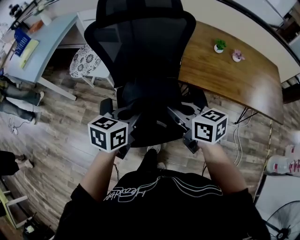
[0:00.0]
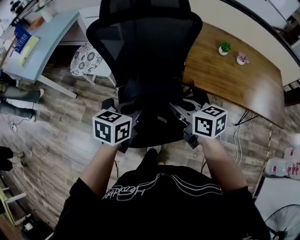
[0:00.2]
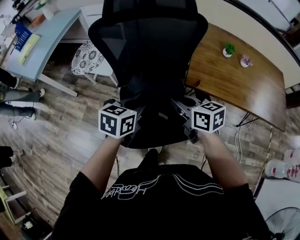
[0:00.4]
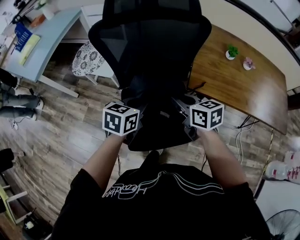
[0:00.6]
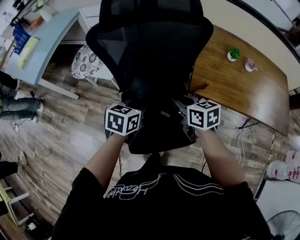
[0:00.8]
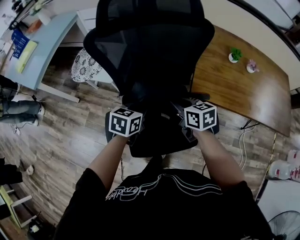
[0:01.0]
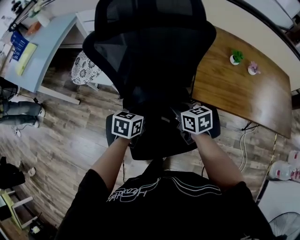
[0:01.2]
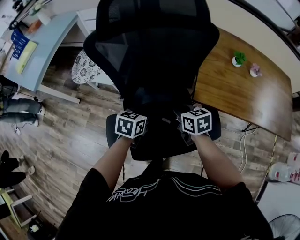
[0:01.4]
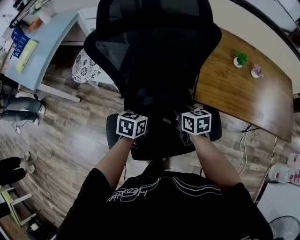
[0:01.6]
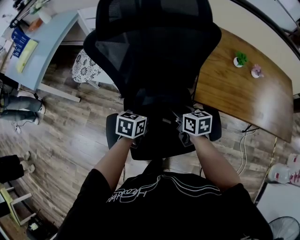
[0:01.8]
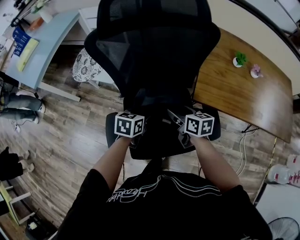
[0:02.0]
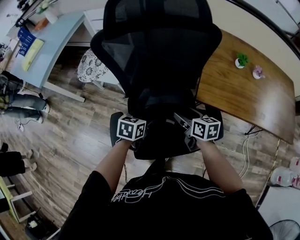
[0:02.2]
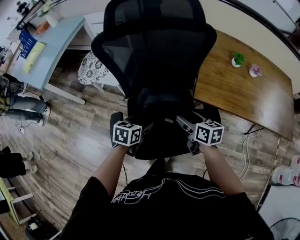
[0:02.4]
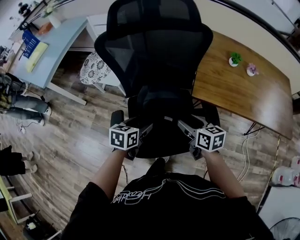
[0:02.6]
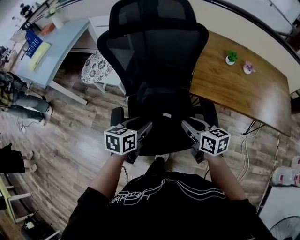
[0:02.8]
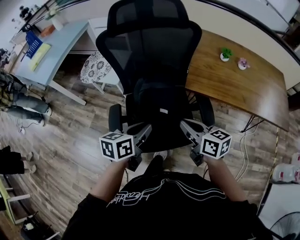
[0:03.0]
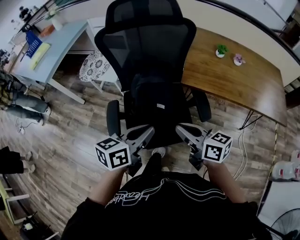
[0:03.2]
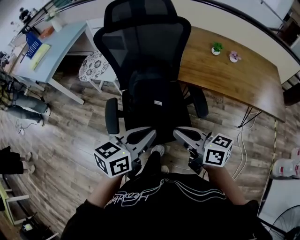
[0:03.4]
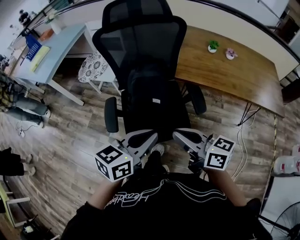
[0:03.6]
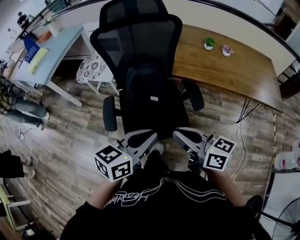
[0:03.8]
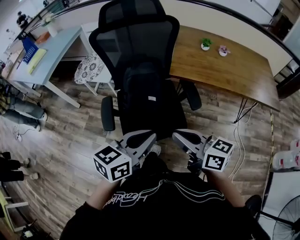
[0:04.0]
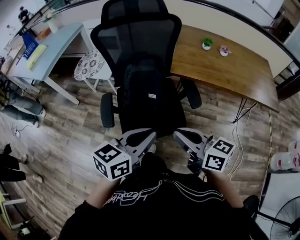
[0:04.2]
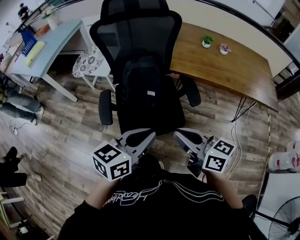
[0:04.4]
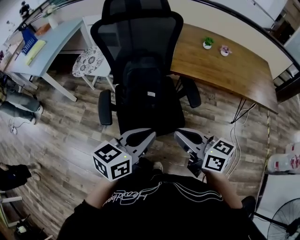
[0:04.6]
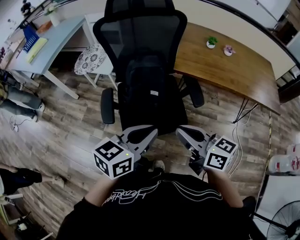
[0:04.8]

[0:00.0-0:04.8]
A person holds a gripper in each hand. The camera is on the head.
0:00.0 to 0:01.6: Both grippers travel together downward and forward, some 20 cm.
0:01.6 to 0:03.2: The two grippers go approximately 30 cm backward and upward. The right gripper turns by about 30 degrees, and opens, then closes again; the left gripper turns by about 30 degrees, and opens and closes again.
0:03.2 to 0:04.8: Both grippers move backward, some 10 cm.

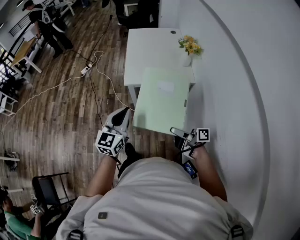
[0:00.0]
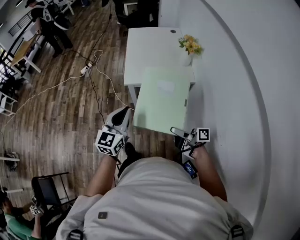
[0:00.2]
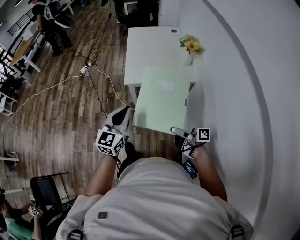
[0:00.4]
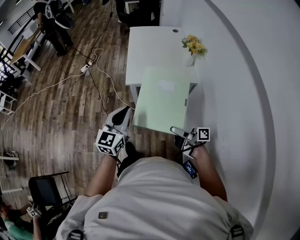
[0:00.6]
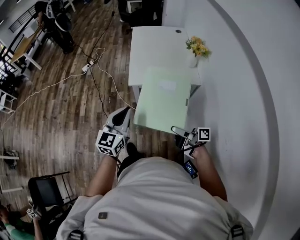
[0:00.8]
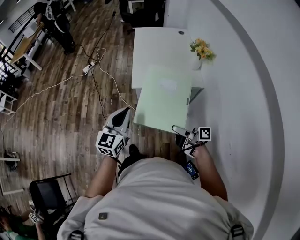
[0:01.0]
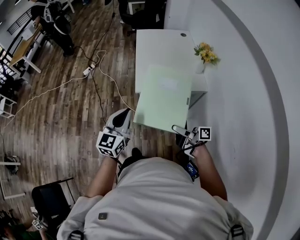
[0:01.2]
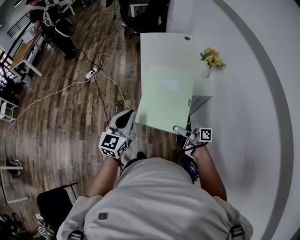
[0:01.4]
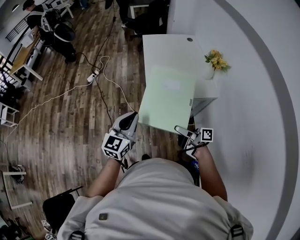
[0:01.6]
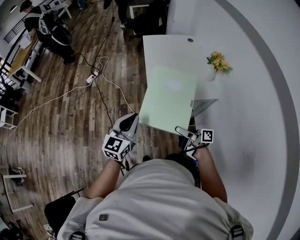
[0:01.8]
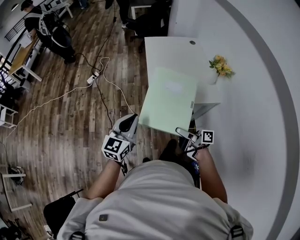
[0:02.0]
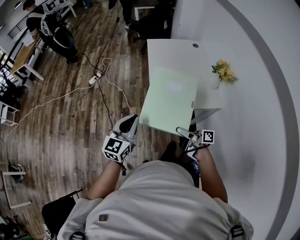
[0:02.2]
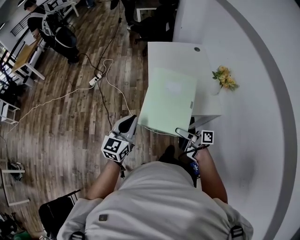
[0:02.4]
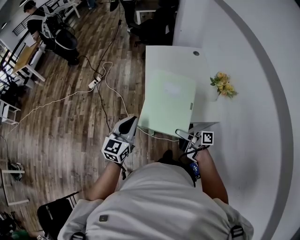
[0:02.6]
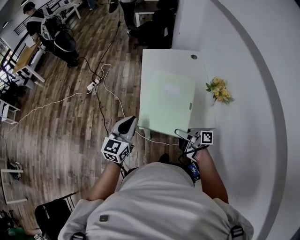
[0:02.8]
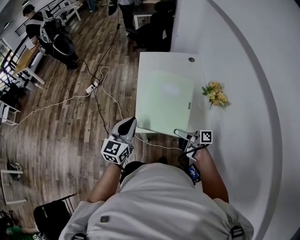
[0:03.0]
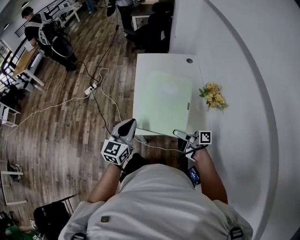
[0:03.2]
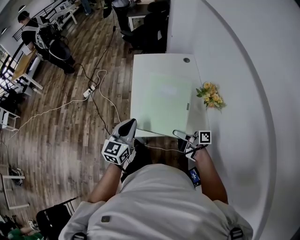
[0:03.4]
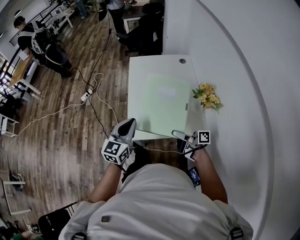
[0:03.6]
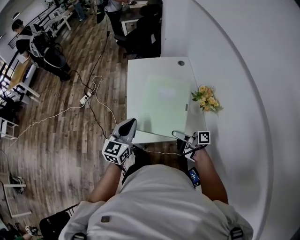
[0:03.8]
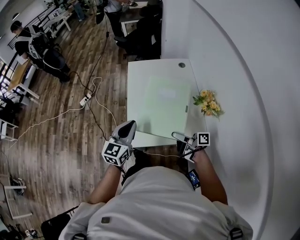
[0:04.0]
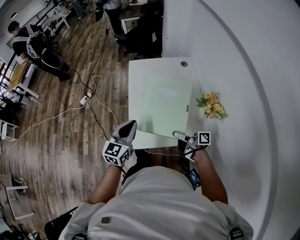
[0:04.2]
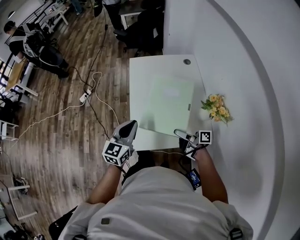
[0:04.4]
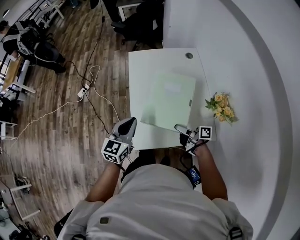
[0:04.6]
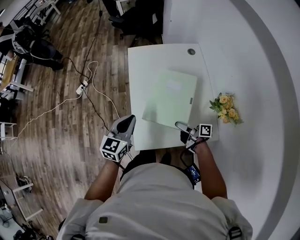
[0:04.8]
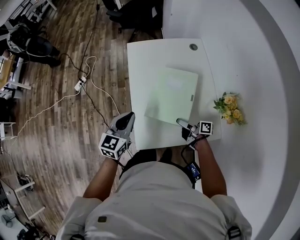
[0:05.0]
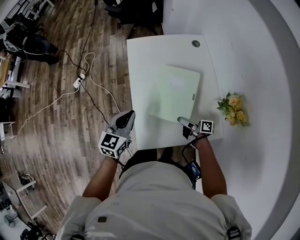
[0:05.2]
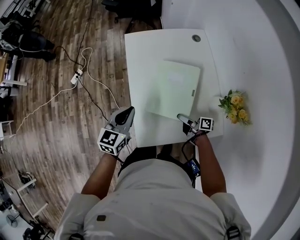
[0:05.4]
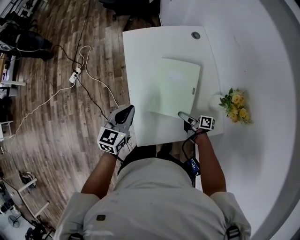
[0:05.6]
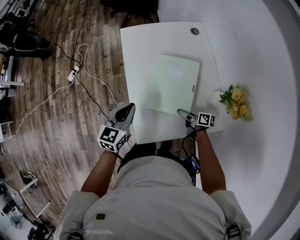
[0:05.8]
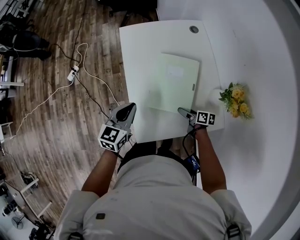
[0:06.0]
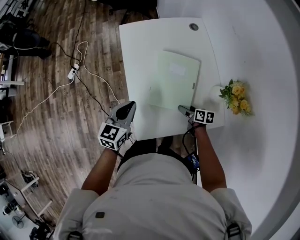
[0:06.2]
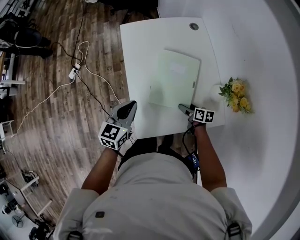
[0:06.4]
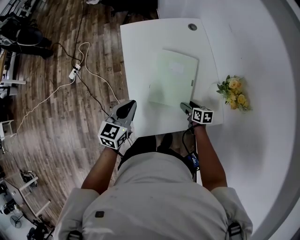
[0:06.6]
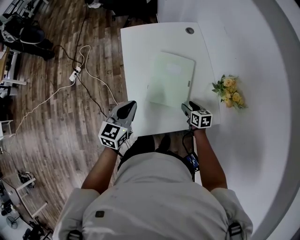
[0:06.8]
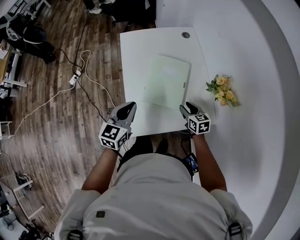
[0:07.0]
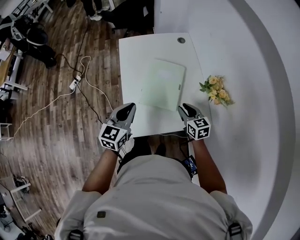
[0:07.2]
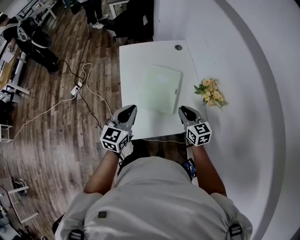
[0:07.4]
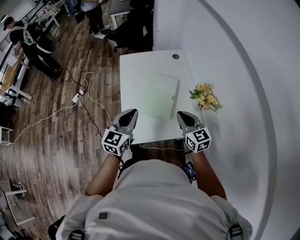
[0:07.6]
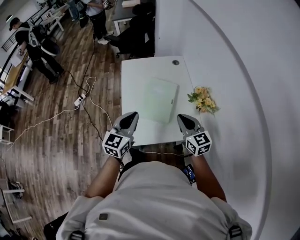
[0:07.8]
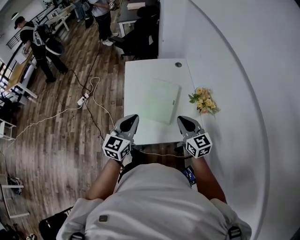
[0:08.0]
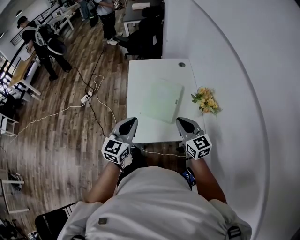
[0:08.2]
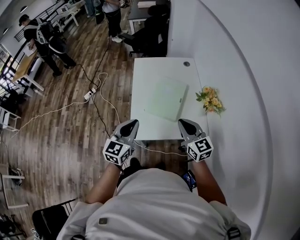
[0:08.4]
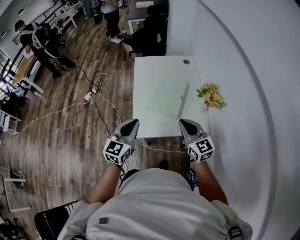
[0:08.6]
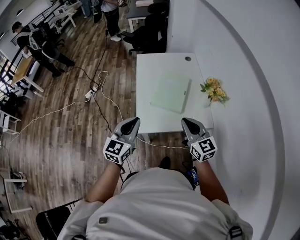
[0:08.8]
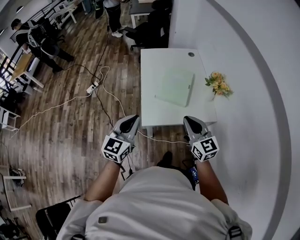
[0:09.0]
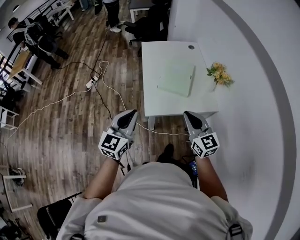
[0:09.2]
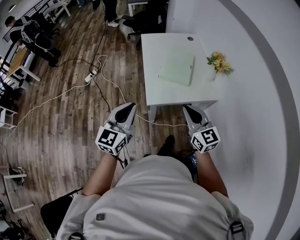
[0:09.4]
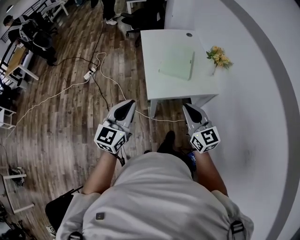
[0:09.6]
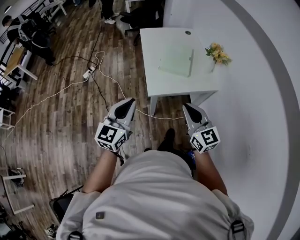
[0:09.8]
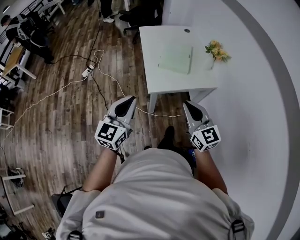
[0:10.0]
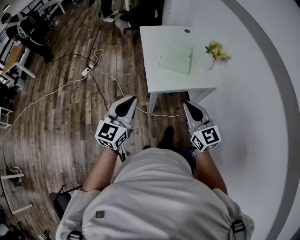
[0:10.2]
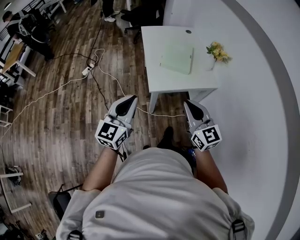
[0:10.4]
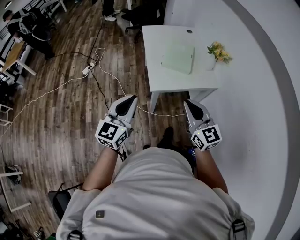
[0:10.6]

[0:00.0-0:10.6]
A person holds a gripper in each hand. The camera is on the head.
0:00.0 to 0:01.6: Both grippers travel together forward and to the left, about 20 cm.
0:01.6 to 0:03.0: The two grippers go approximately 25 cm forward and to the right.
0:03.0 to 0:04.6: The right gripper is displaced forward, downward and to the right by roughly 20 cm, while the left gripper travels forward by about 15 cm.
0:04.6 to 0:06.0: The left gripper heads downward and forward, covering approximately 10 cm, while the right gripper moves downward, roughly 15 cm, and tilts its fingers about 30 degrees downward.
0:06.0 to 0:07.6: The left gripper goes roughly 20 cm upward, backward and to the right. Meanwhile the right gripper shifts approximately 30 cm upward, twists approximately 60 degrees counterclockwise, seen from behind, and closes up.
0:07.6 to 0:09.0: The grippers both shift backward and to the left by roughly 20 cm.
0:09.0 to 0:10.6: Both grippers travel together backward and to the left, some 20 cm.

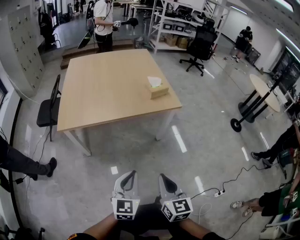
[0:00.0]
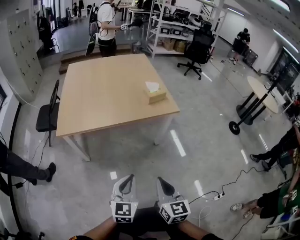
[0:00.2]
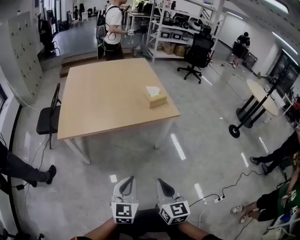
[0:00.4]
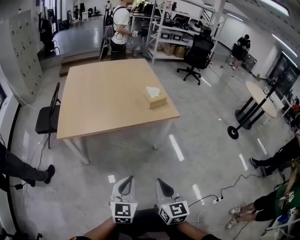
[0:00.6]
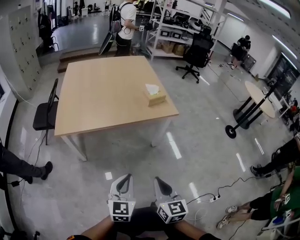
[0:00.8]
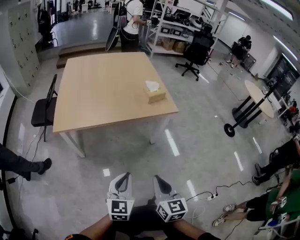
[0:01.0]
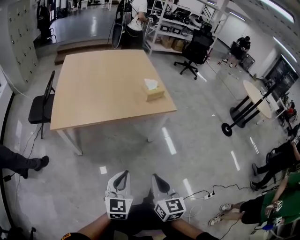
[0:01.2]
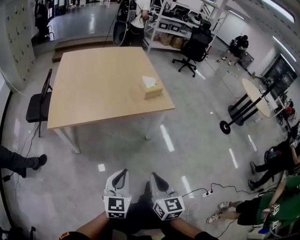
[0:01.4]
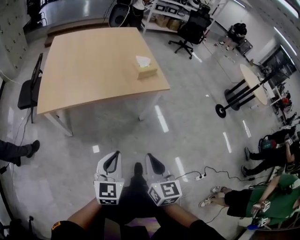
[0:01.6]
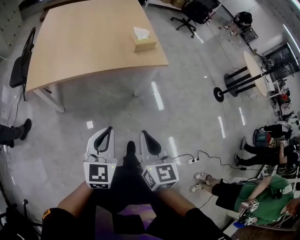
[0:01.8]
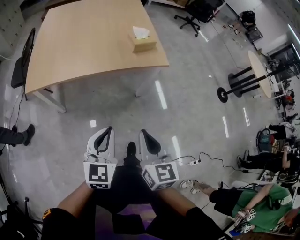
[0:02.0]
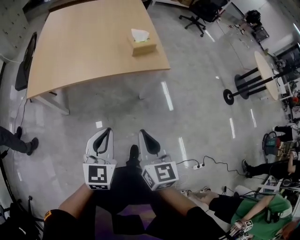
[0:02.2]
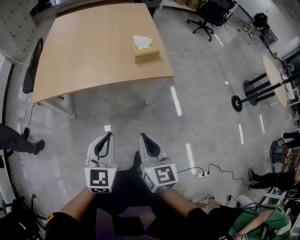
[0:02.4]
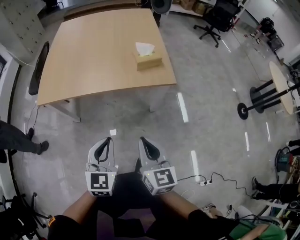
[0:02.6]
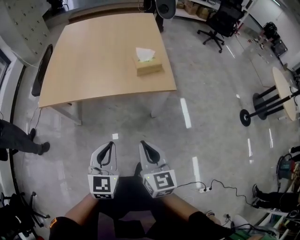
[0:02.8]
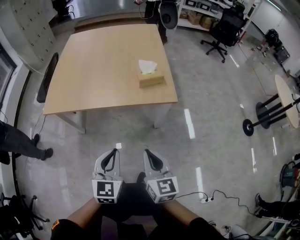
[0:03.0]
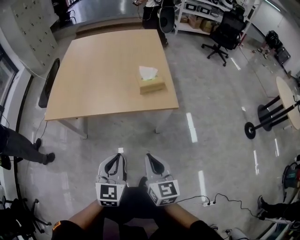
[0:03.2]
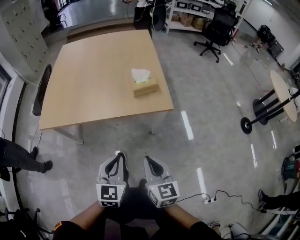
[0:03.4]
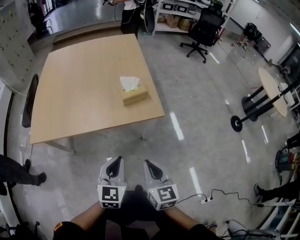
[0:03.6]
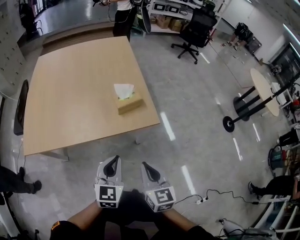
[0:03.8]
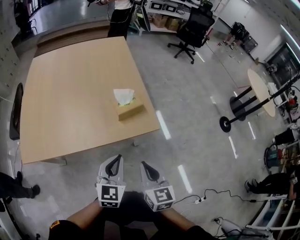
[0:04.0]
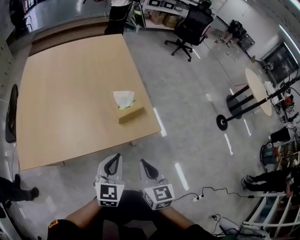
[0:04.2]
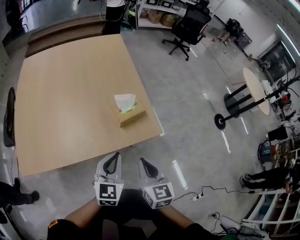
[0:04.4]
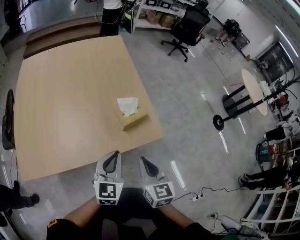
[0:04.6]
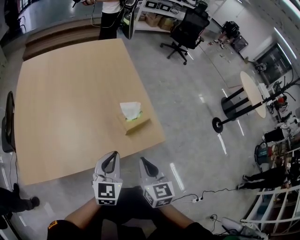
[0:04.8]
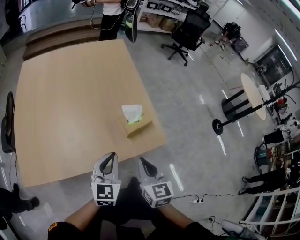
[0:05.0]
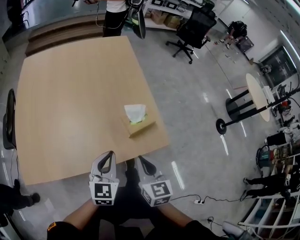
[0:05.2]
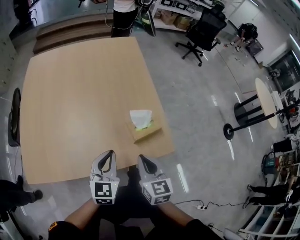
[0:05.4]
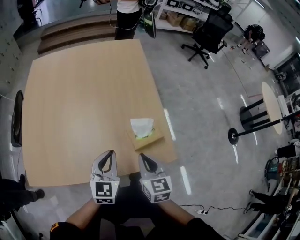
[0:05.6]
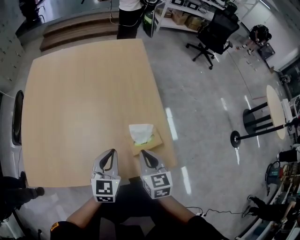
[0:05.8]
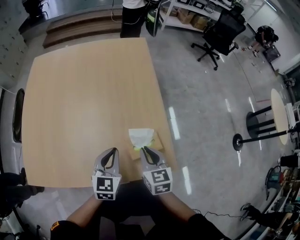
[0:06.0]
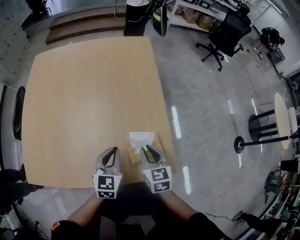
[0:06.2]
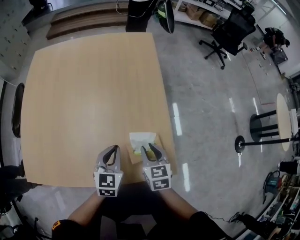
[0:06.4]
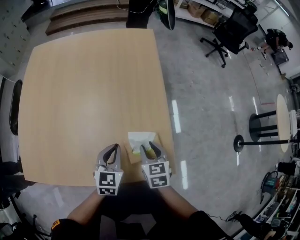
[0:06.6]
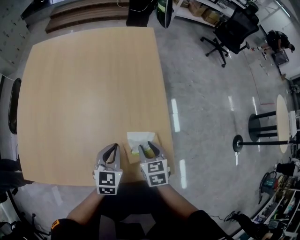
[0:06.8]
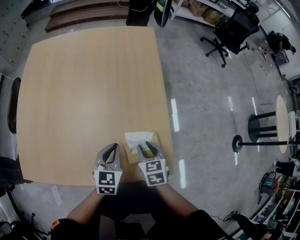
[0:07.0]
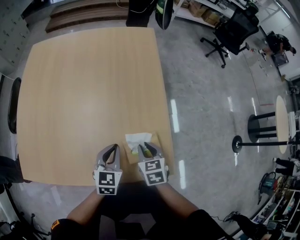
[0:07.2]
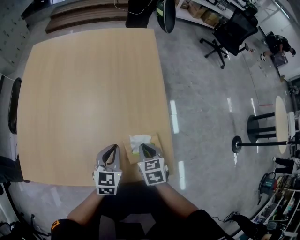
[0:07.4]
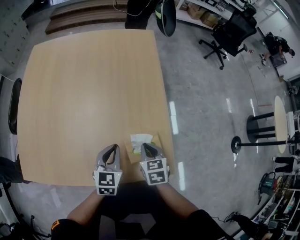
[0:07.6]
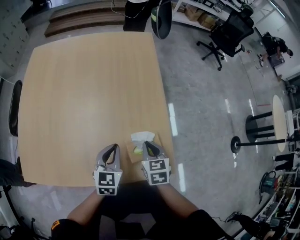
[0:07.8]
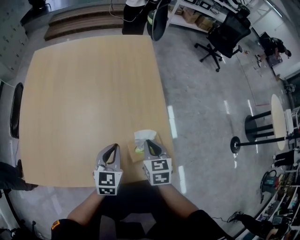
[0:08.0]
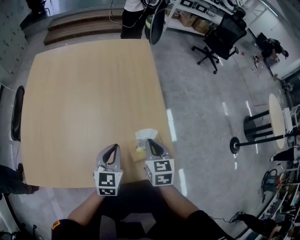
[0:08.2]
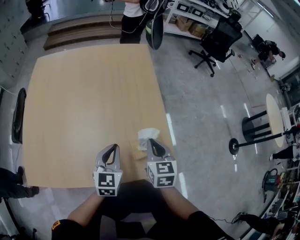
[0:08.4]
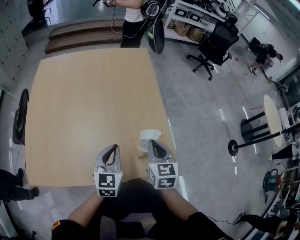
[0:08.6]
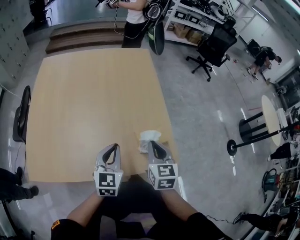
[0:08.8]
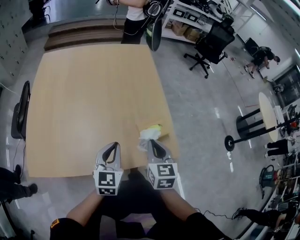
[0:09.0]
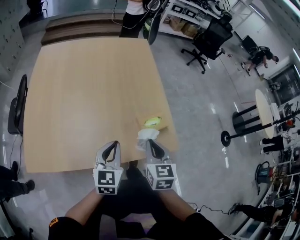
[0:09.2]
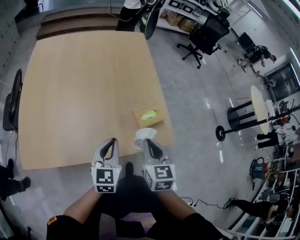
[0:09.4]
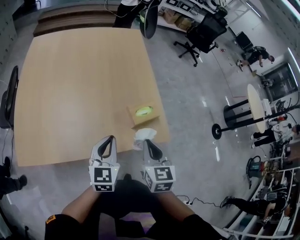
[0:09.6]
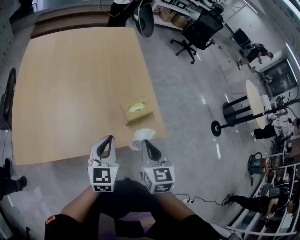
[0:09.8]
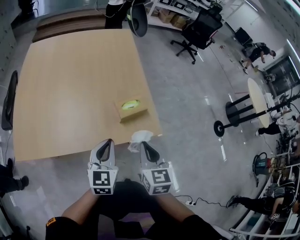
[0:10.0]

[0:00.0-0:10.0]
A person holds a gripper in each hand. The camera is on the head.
0:00.0 to 0:01.4: The grippers make only small movements.
0:01.4 to 0:02.8: The left gripper is displaced to the right and forward by roughly 15 cm. Meanwhile the right gripper shifts approximately 20 cm forward and to the right.
0:02.8 to 0:04.2: Both grippers move forward, approximately 20 cm.
0:04.2 to 0:05.8: The left gripper heads forward and to the left, covering roughly 20 cm. Meanwhile the right gripper heads forward, covering about 25 cm.
0:05.8 to 0:07.2: The left gripper heads downward, covering some 5 cm. Meanwhile the right gripper moves downward and forward, about 10 cm, and changes its angle by about 20 degrees.
0:07.2 to 0:08.6: The left gripper is displaced upward by approximately 10 cm. Meanwhile the right gripper travels upward by roughly 15 cm, and swivels about 20 degrees.
0:08.6 to 0:10.0: The left gripper shifts about 15 cm backward and to the right. The right gripper is displaced backward by roughly 20 cm.
